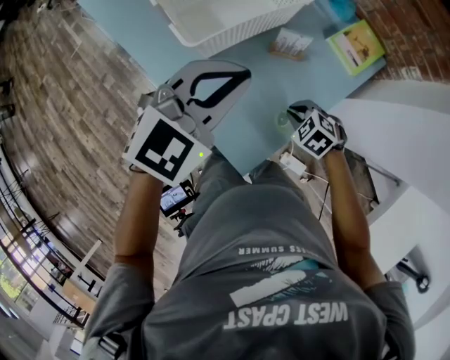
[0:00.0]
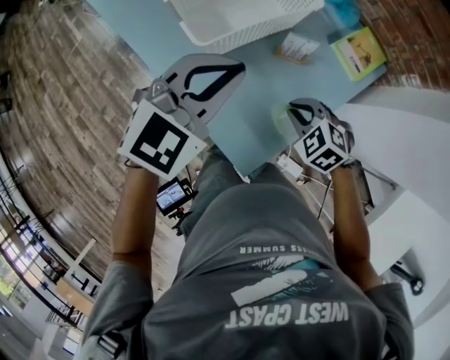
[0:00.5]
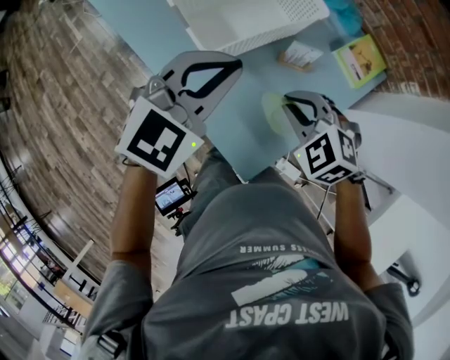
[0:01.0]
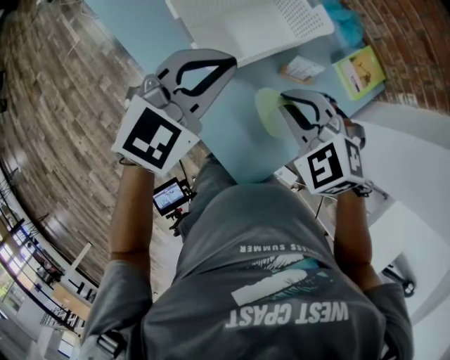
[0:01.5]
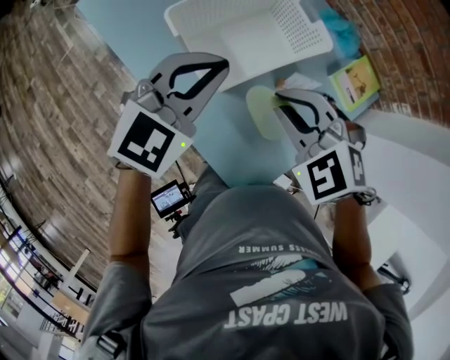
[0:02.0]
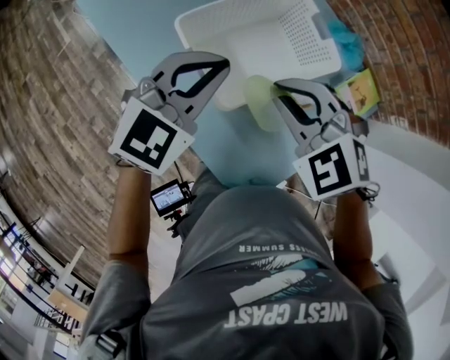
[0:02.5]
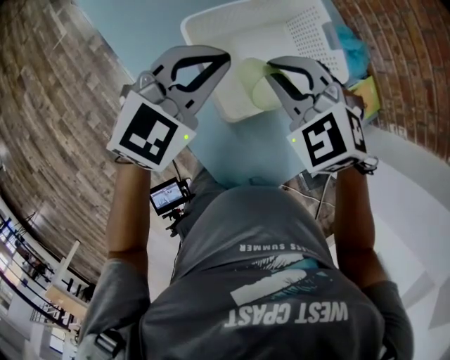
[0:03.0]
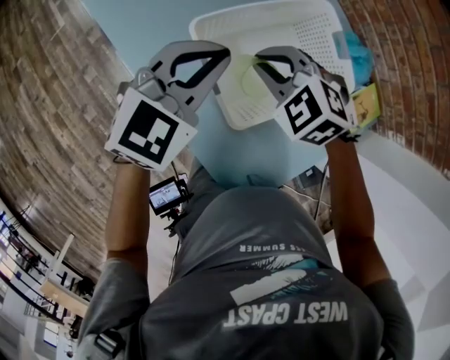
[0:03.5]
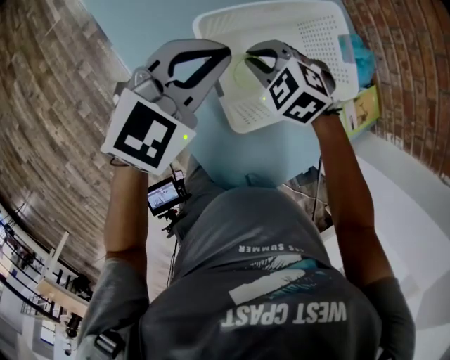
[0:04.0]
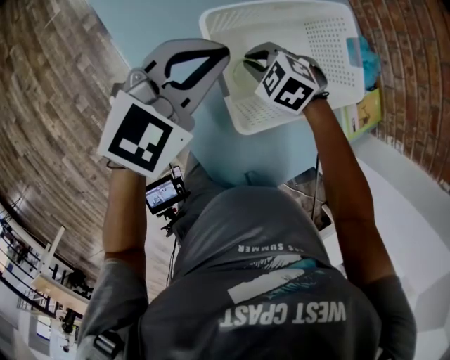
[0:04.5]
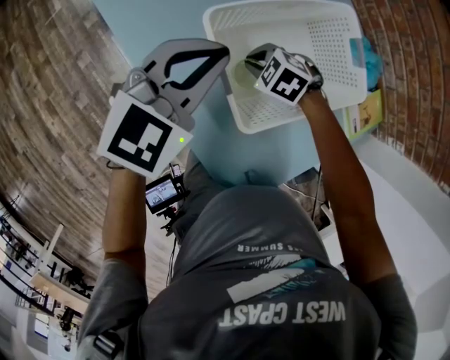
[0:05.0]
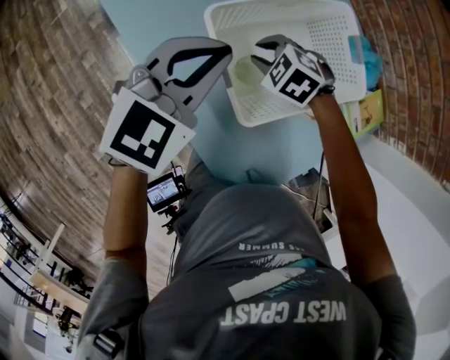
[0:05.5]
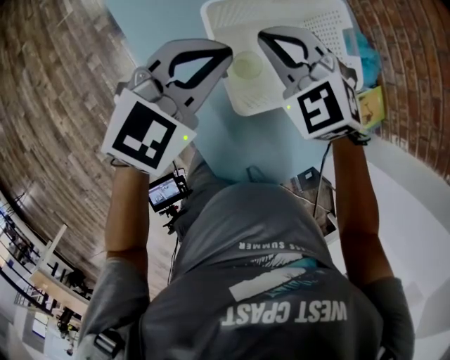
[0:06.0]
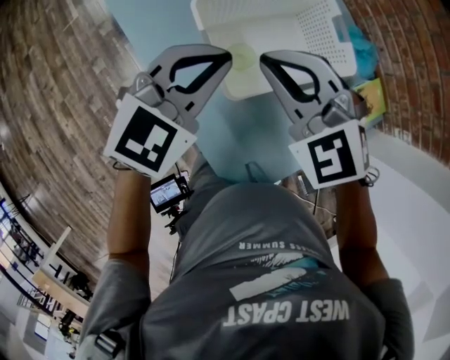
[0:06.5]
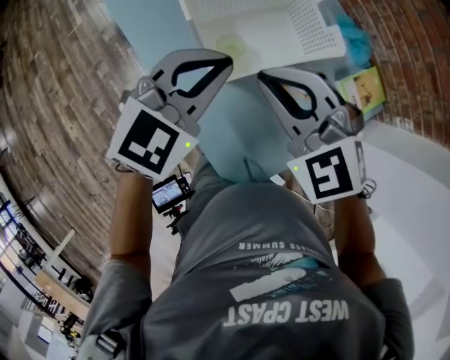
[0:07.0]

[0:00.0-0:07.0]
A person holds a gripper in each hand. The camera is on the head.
0:00.0 to 0:02.0: The left gripper shifts approximately 15 cm forward and to the left, while the right gripper goes approximately 35 cm upward, to the left and forward, and turns by about 30 degrees.
0:02.0 to 0:03.5: The left gripper goes some 15 cm forward and to the left. Meanwhile the right gripper travels forward, to the left and downward by some 20 cm.
0:03.5 to 0:05.0: The right gripper is displaced downward by approximately 20 cm, and swivels roughly 20 degrees.
0:05.0 to 0:07.0: The right gripper goes some 35 cm upward and backward, and tips its fingers upward by some 40 degrees, while the left gripper heads backward, to the right and upward, covering approximately 15 cm.

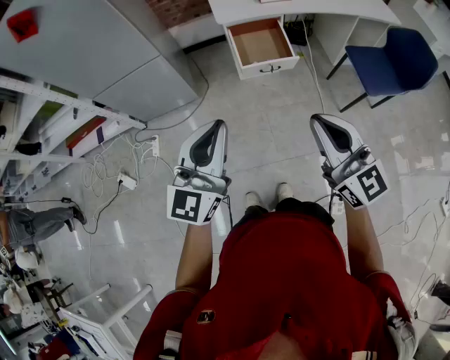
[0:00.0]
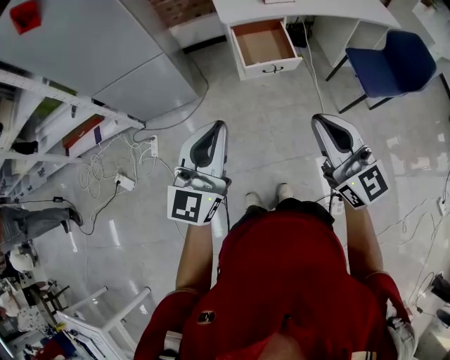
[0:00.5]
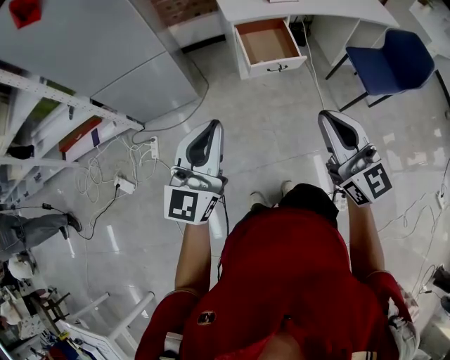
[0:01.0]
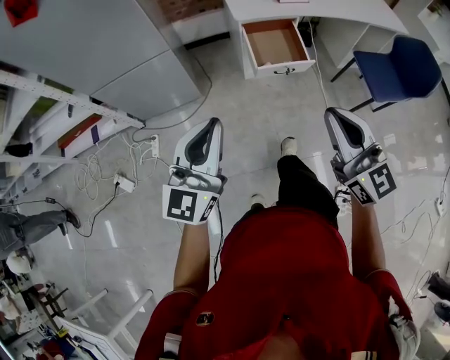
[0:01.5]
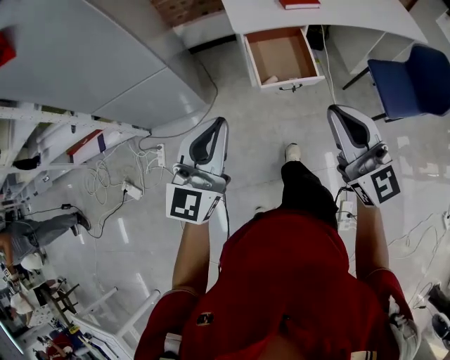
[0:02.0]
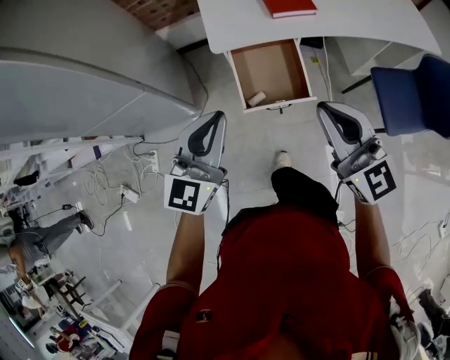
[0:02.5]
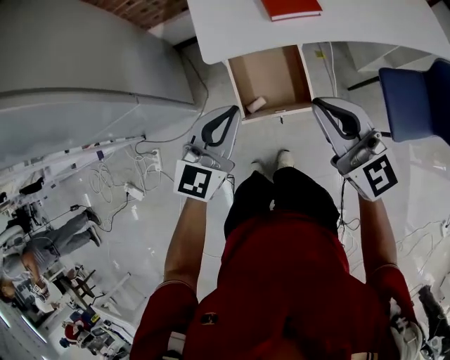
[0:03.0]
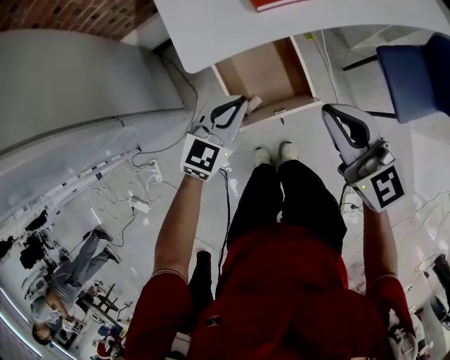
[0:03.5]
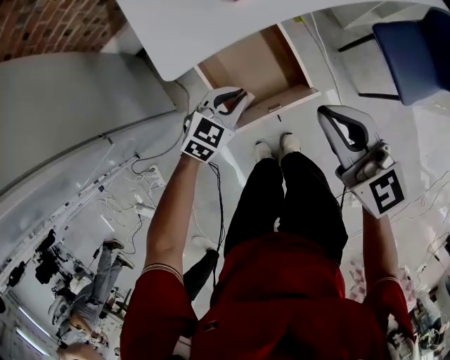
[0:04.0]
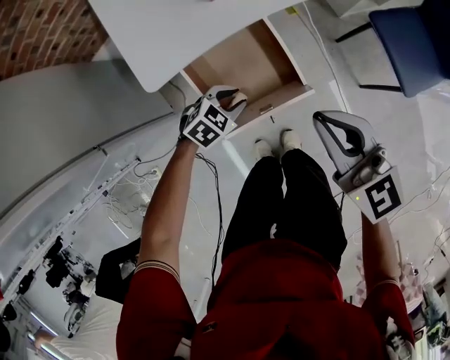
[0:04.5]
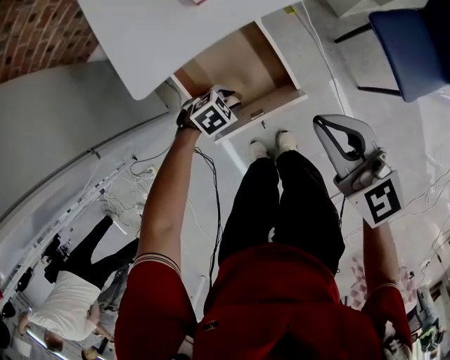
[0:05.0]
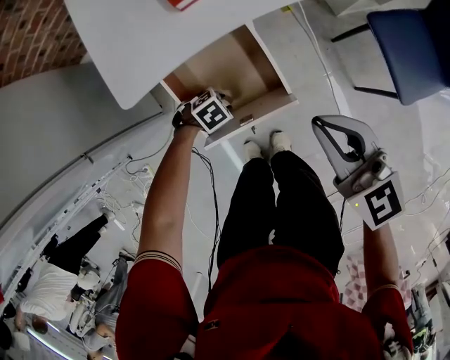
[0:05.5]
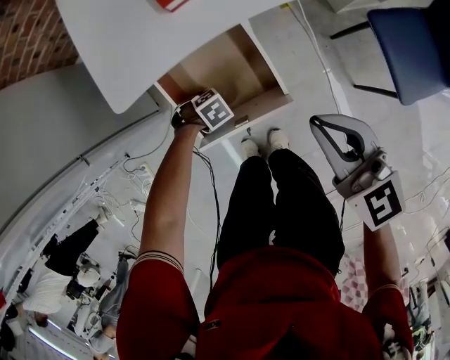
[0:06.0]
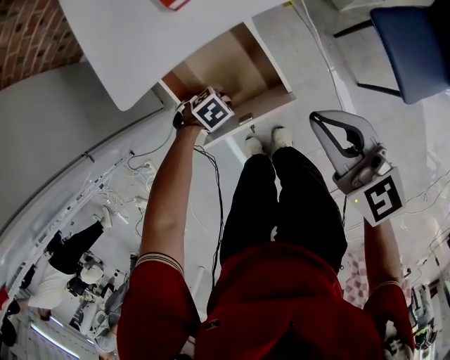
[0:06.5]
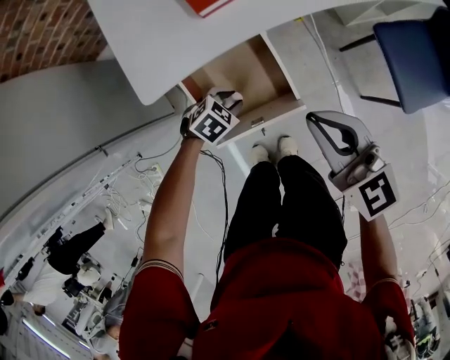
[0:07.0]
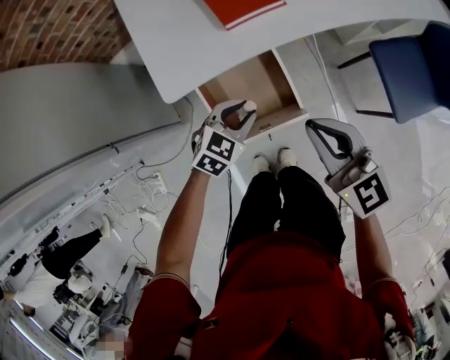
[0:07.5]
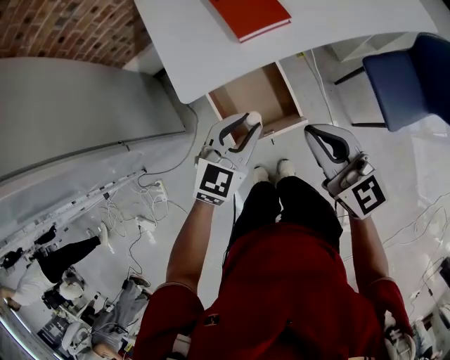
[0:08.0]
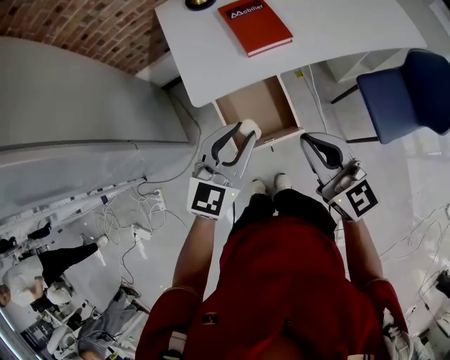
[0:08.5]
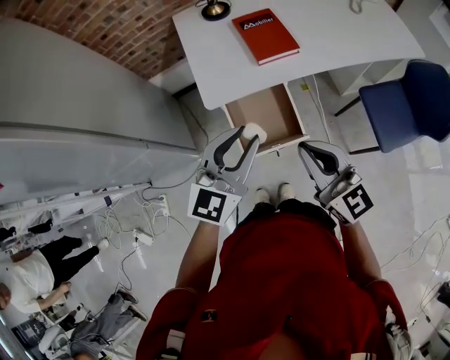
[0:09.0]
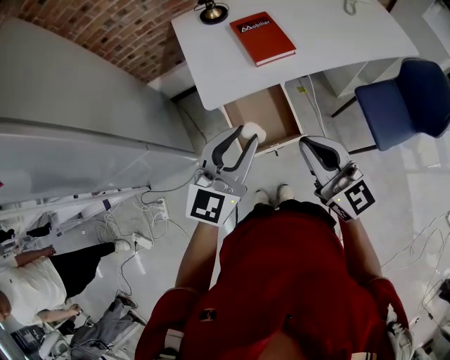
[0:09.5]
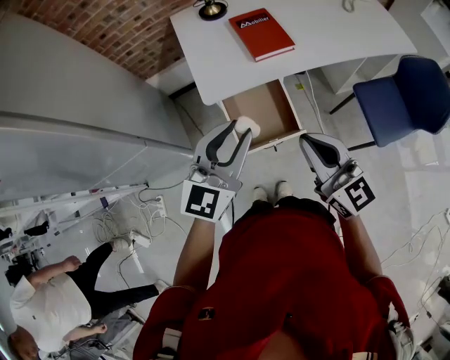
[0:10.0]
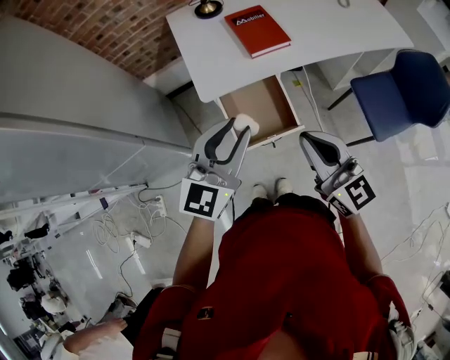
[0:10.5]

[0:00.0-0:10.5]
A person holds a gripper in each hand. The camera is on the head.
0:00.0 to 0:02.0: The grippers both shift forward by roughly 20 cm.
0:02.0 to 0:04.0: The two grippers go about 50 cm forward and downward. The left gripper angles its fingers downward, by about 40 degrees.
0:04.0 to 0:06.5: The left gripper moves downward, about 20 cm, and angles its fingers downward, by roughly 40 degrees. Meanwhile the right gripper moves about 10 cm.
0:06.5 to 0:08.5: The right gripper travels upward by roughly 20 cm; the left gripper goes roughly 50 cm upward, and points its fingers roughly 60 degrees further upward.
0:08.5 to 0:10.5: The left gripper heads upward and backward, covering some 10 cm, while the right gripper travels backward by some 5 cm.

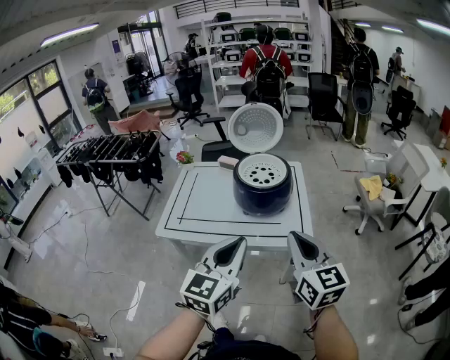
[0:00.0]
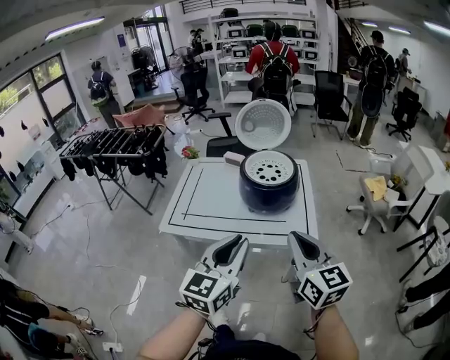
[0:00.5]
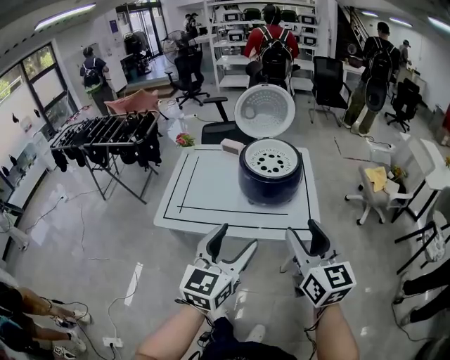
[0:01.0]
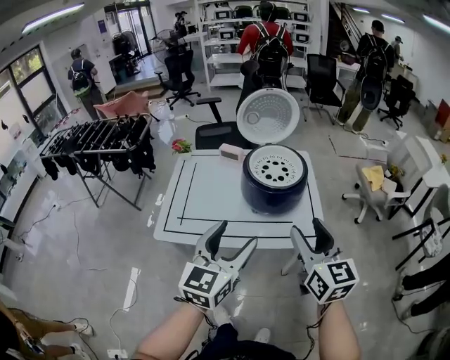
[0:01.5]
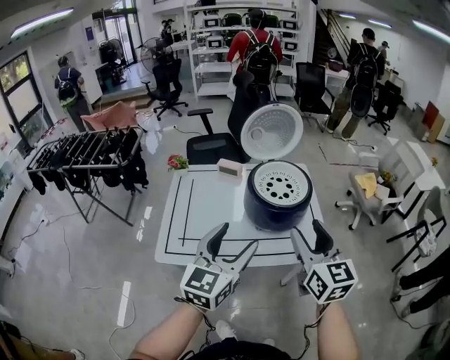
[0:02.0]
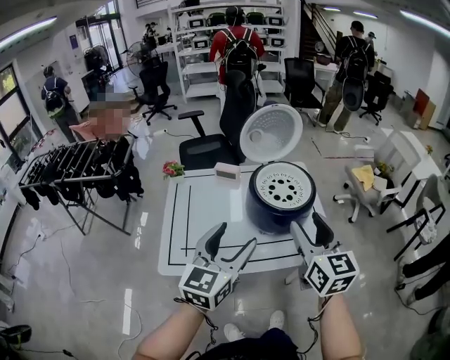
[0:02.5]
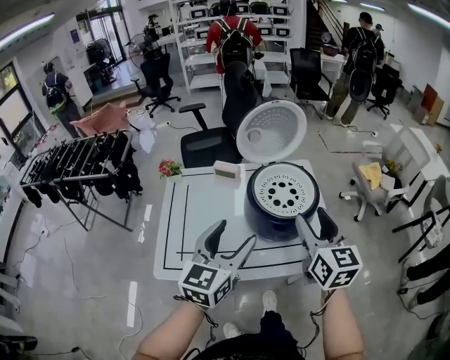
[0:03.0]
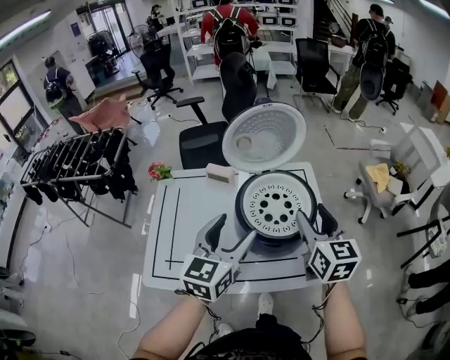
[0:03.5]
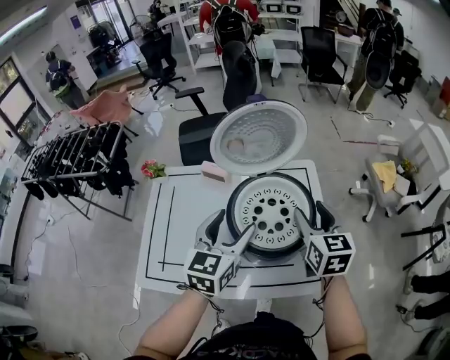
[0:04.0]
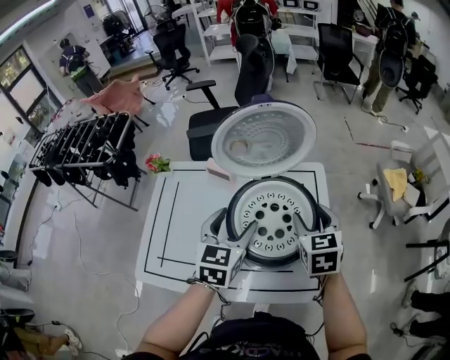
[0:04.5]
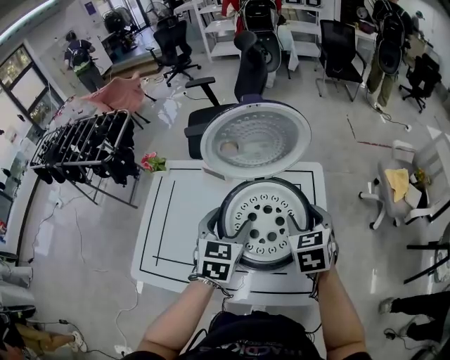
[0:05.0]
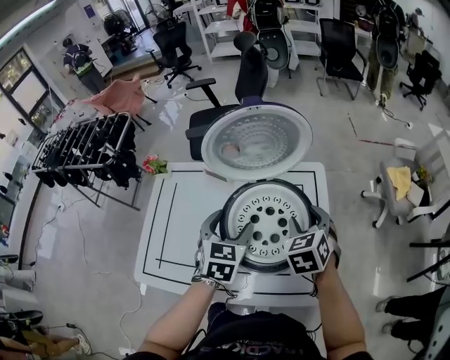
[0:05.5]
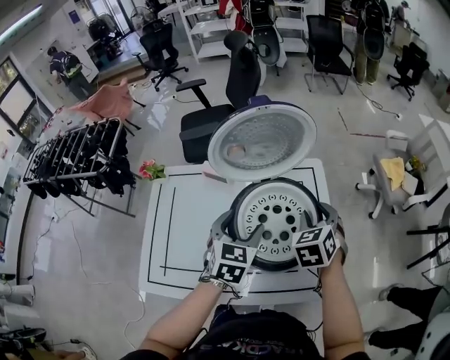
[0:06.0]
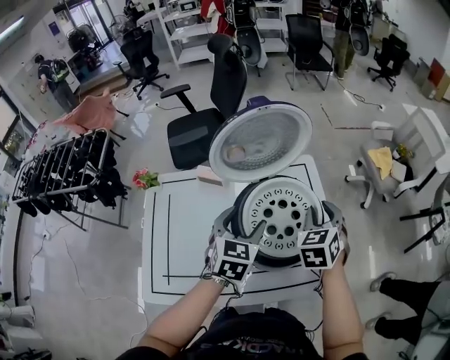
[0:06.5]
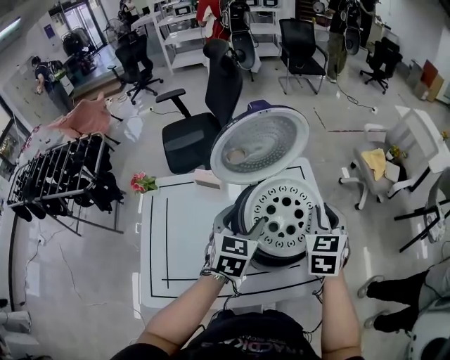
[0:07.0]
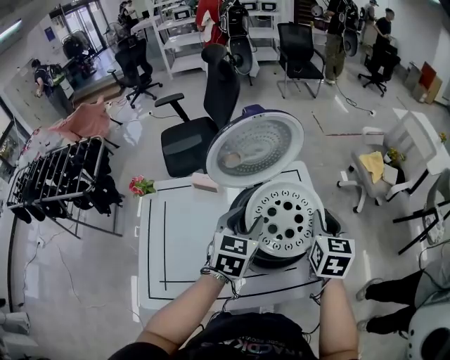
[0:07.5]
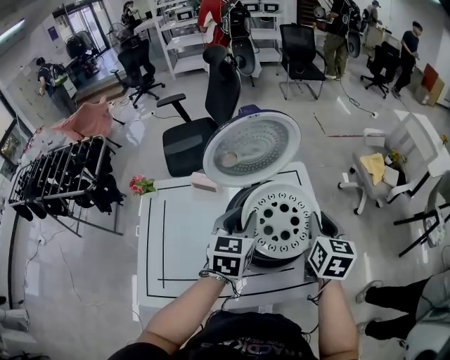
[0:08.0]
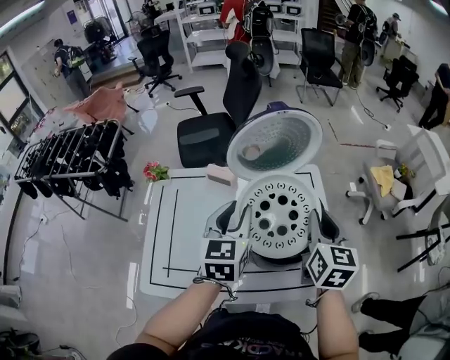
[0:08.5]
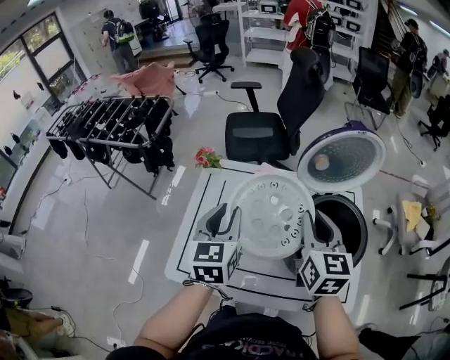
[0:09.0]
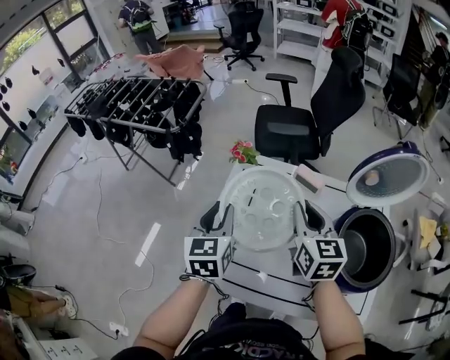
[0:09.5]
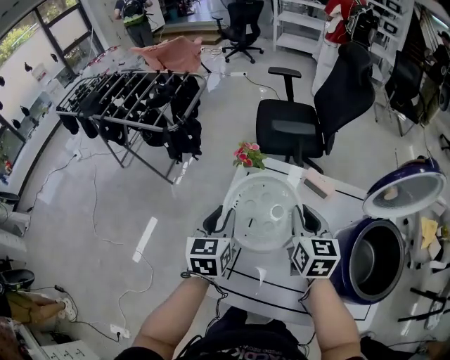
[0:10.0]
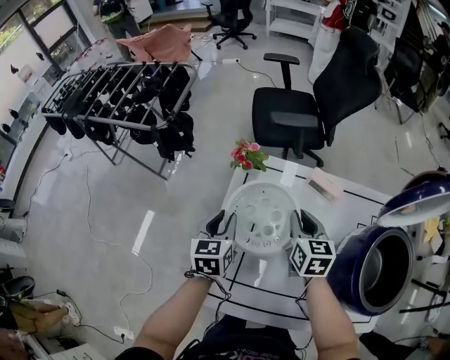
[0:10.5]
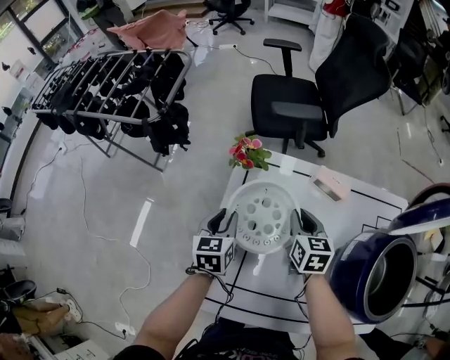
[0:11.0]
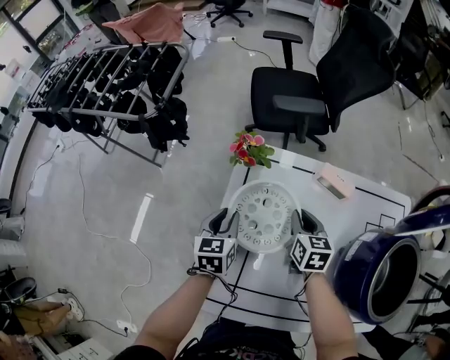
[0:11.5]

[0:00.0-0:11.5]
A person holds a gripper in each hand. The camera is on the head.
0:00.0 to 0:02.0: The grippers both shift forward and to the left by about 20 cm. The left gripper opens, while the right gripper opens its fingers.
0:02.0 to 0:04.0: Both grippers travel together forward, approximately 25 cm.
0:04.0 to 0:06.0: The two grippers go about 10 cm downward and forward. The left gripper turns by some 20 degrees. Meanwhile the right gripper swivels roughly 40 degrees.
0:06.0 to 0:07.5: The right gripper shifts about 5 cm upward, turns by some 40 degrees, and closes up, while the left gripper closes.
0:07.5 to 0:09.5: The two grippers travel together, roughly 40 cm. The right gripper changes its angle by some 40 degrees. Meanwhile the left gripper changes its angle by some 40 degrees.
0:09.5 to 0:11.5: The two grippers go about 25 cm downward and forward. The right gripper rotates approximately 20 degrees.
